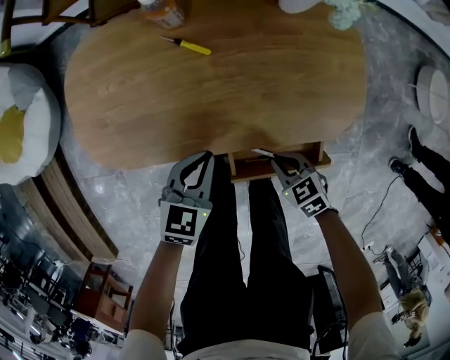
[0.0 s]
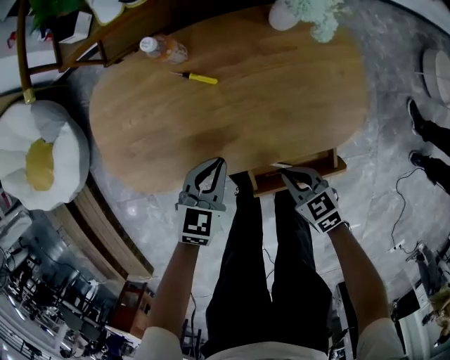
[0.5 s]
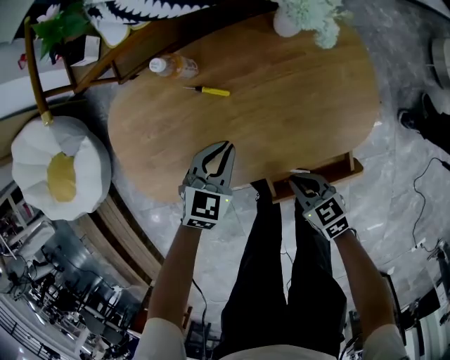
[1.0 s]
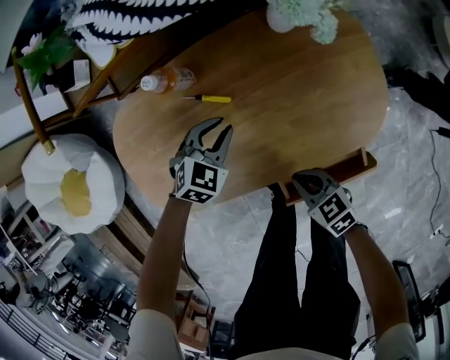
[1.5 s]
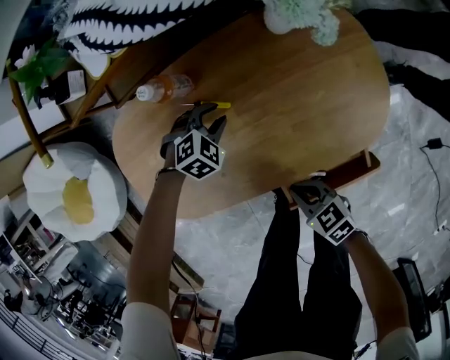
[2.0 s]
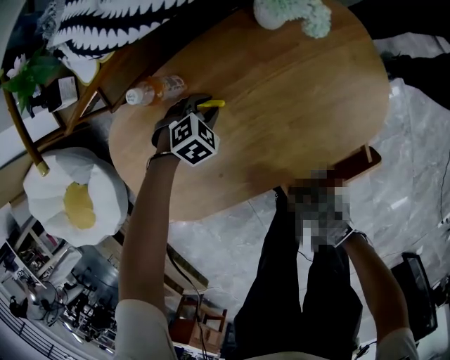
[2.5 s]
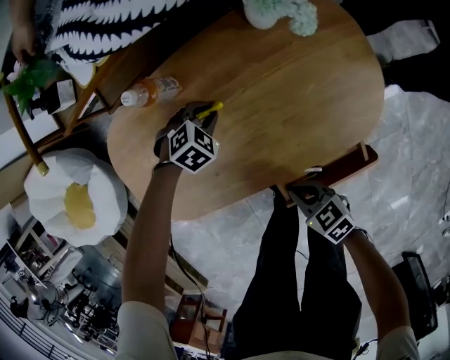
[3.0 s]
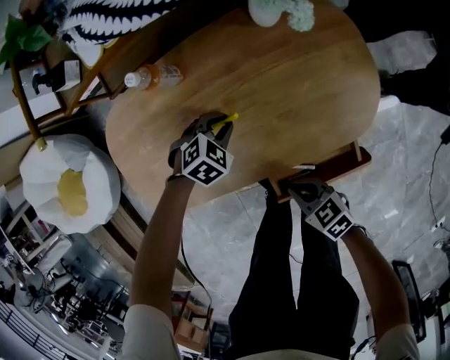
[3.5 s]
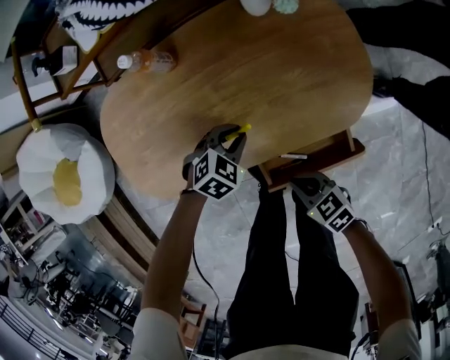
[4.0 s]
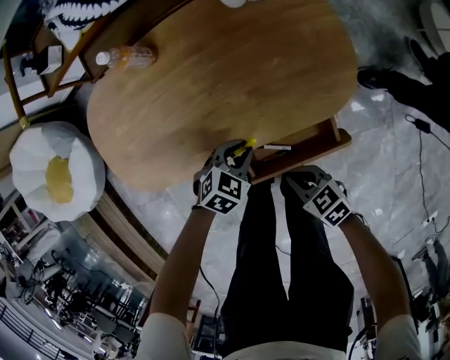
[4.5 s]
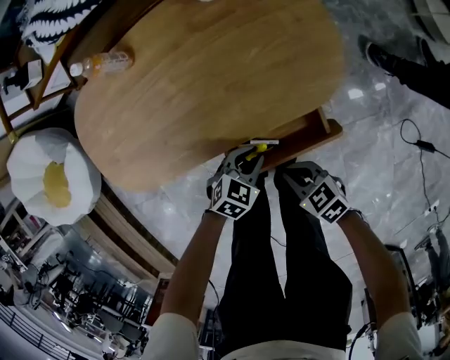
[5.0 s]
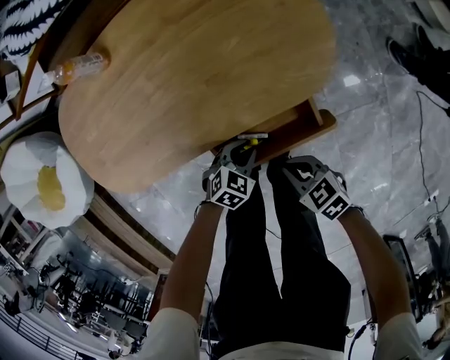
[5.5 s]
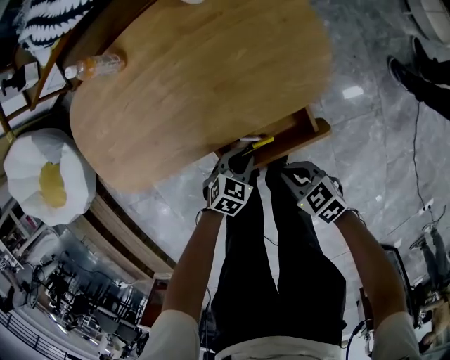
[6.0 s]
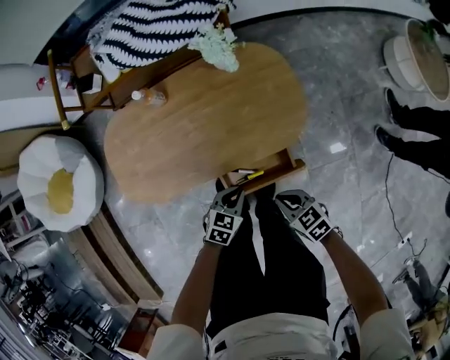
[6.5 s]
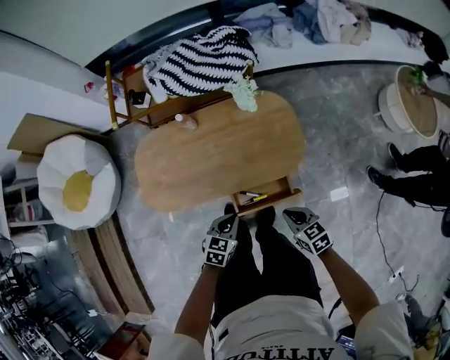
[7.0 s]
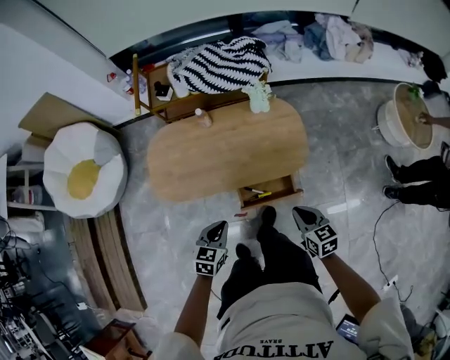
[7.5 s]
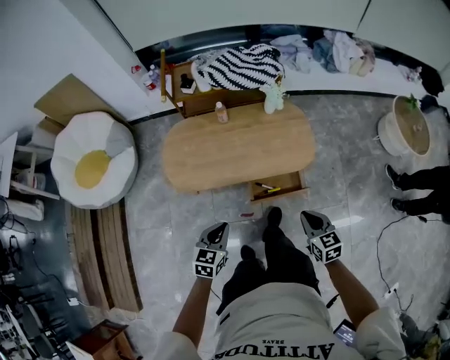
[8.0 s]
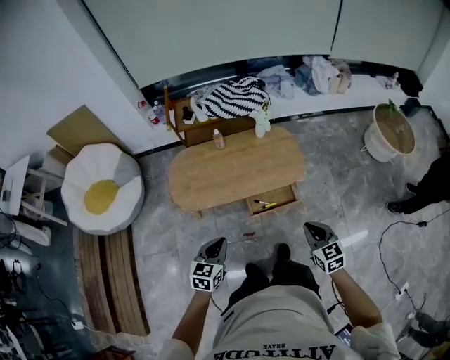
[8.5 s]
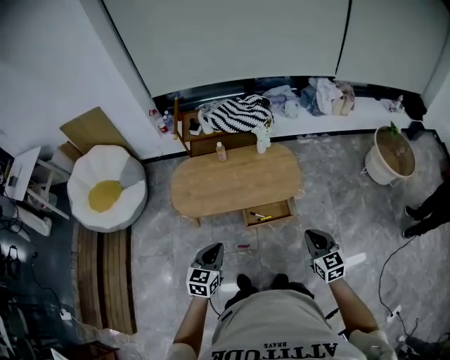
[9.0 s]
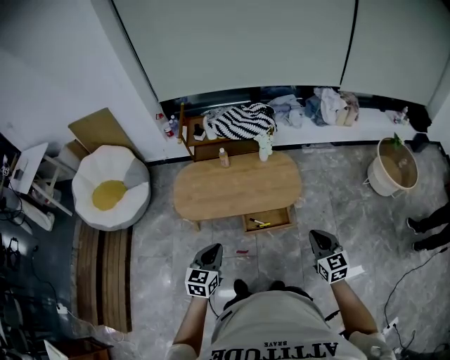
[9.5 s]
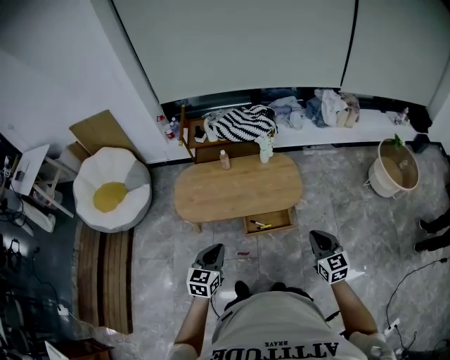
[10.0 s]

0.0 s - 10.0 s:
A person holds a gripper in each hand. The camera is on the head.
0.0 s - 2.0 s: The left gripper travels forward and downward by roughly 25 cm, rolls clockwise, seen from behind, by approximately 50 degrees, and opens; the right gripper travels to the left by roughly 5 cm, and swivels some 20 degrees.
2.0 s - 4.0 s: The left gripper ends up approximately 15 cm from where it was. Meanwhile the right gripper ends up about 10 cm from where it was.
4.0 s - 6.0 s: The right gripper changes place by some 10 cm. Meanwhile the left gripper moves roughly 20 cm.
6.0 s - 8.0 s: The grippers both shift upward by some 40 cm. The left gripper changes its angle by roughly 40 degrees, while the right gripper changes its angle by roughly 30 degrees.
8.0 s - 10.0 s: The left gripper is displaced upward and backward by about 20 cm. Meanwhile the right gripper heads upward, to the right and backward, covering approximately 20 cm.

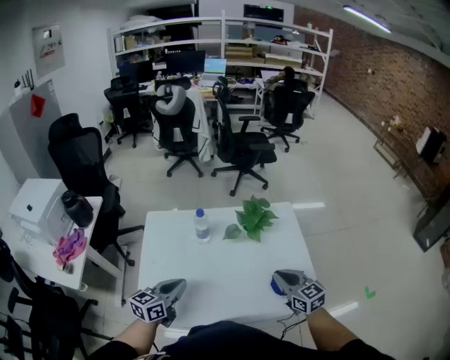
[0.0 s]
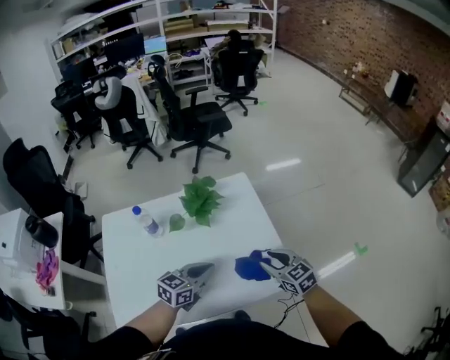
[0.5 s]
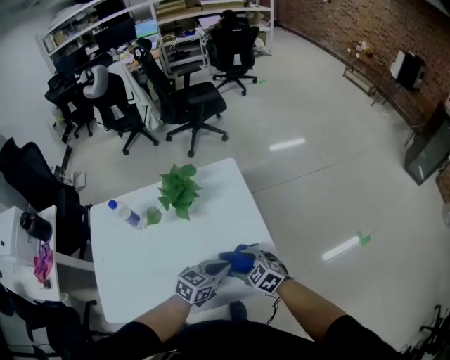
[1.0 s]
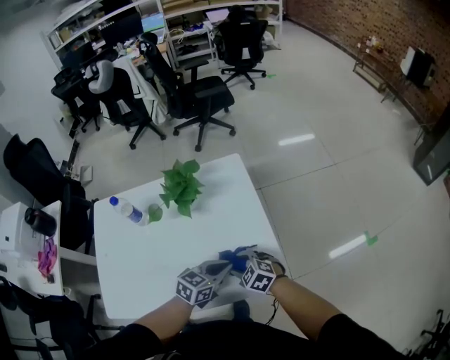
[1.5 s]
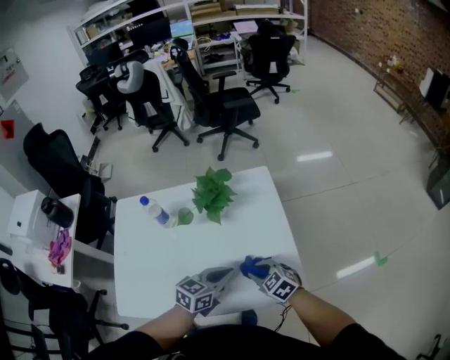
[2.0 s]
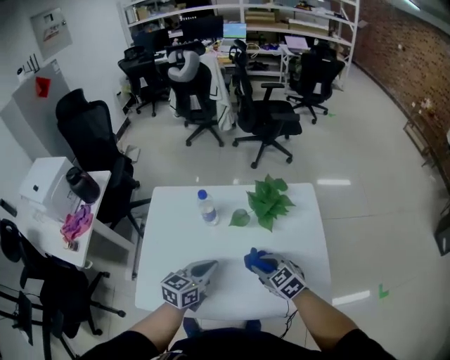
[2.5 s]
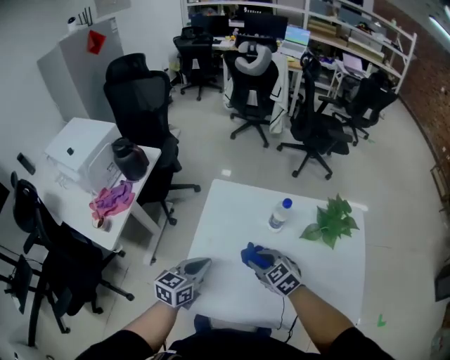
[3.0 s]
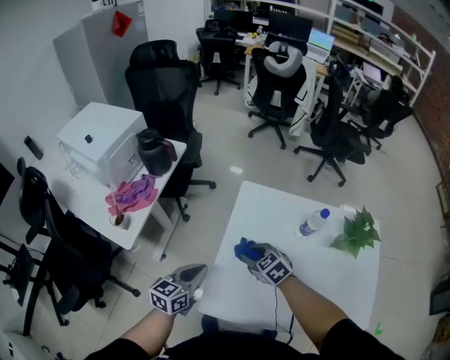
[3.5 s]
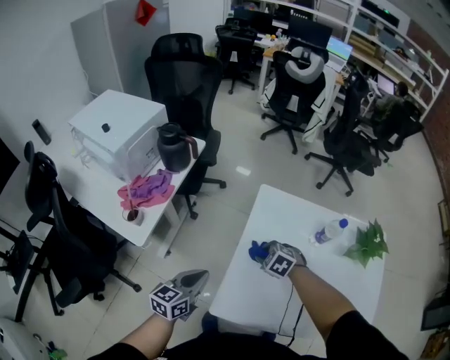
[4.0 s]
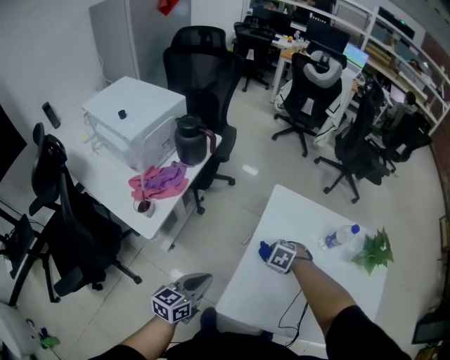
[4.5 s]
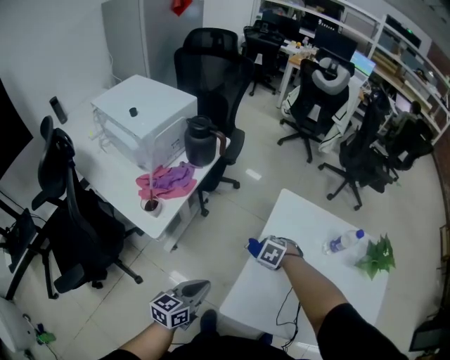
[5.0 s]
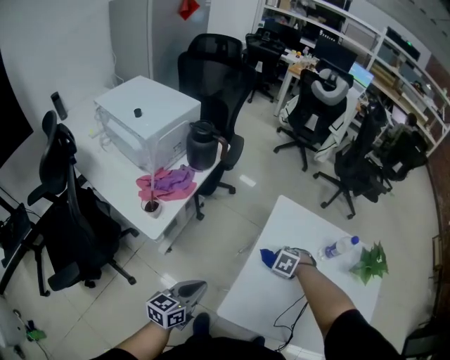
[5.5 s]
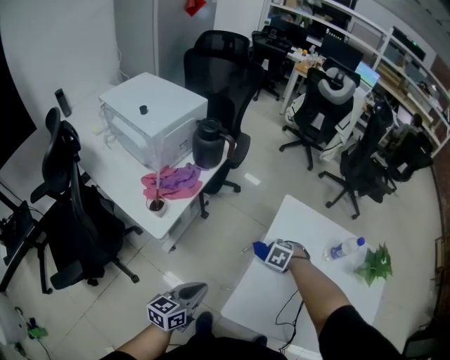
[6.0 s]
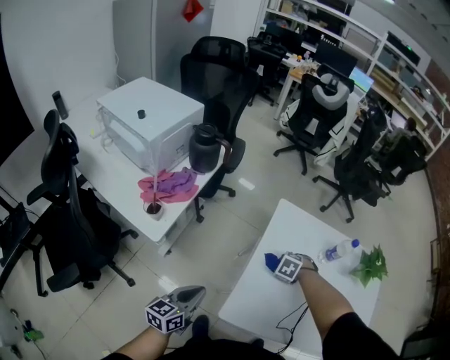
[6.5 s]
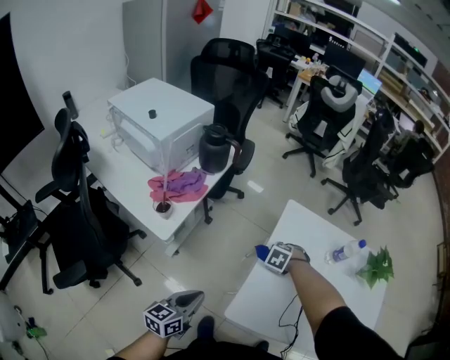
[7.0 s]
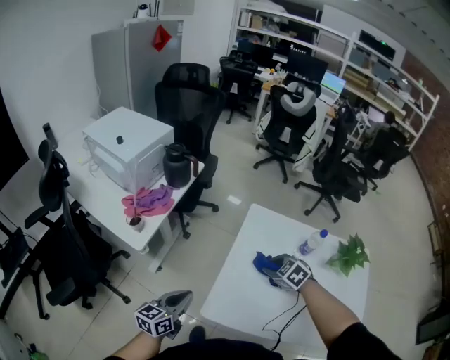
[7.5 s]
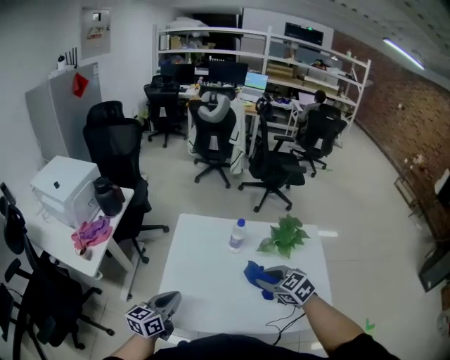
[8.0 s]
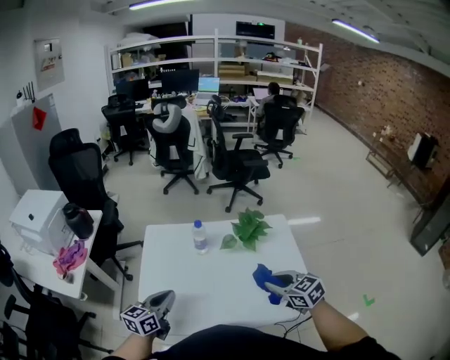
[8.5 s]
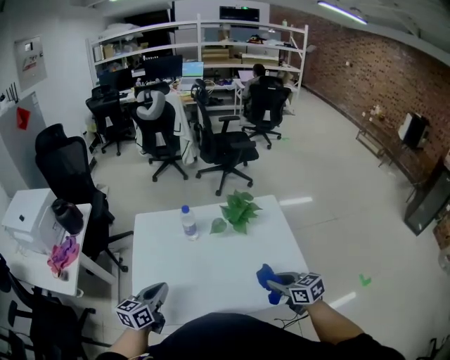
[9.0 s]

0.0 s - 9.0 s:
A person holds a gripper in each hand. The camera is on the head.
0.0 s - 2.0 s: The right gripper moves downward and to the right, some 15 cm, rotates approximately 30 degrees, and opens, then closes again. Meanwhile the left gripper goes approximately 35 cm to the right.
2.0 s - 4.5 s: Both grippers are carried about 60 cm. The right gripper tilts its fingers about 40 degrees downward; the left gripper changes its angle by some 40 degrees.
4.5 s - 7.0 s: The right gripper moves about 5 cm; the left gripper moves some 10 cm.
7.0 s - 9.0 s: The right gripper ends up about 60 cm from where it was, and points its fingers about 50 degrees further upward. Meanwhile the left gripper shifts by roughly 40 cm, and changes its angle by approximately 30 degrees.

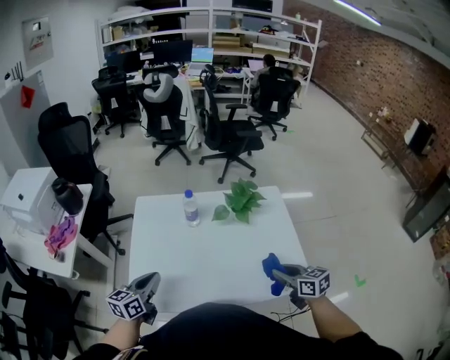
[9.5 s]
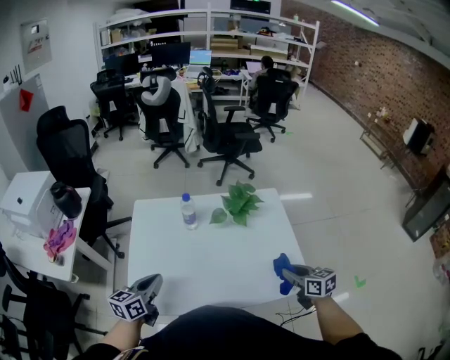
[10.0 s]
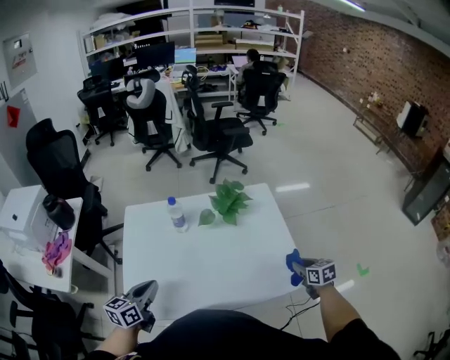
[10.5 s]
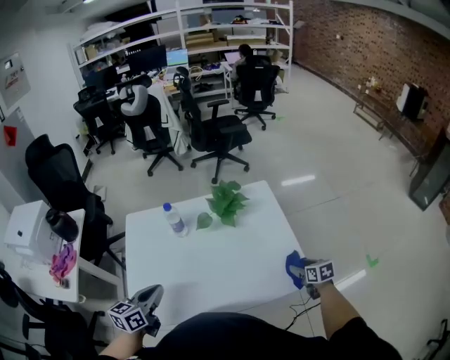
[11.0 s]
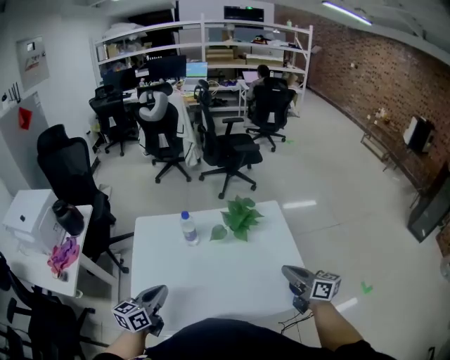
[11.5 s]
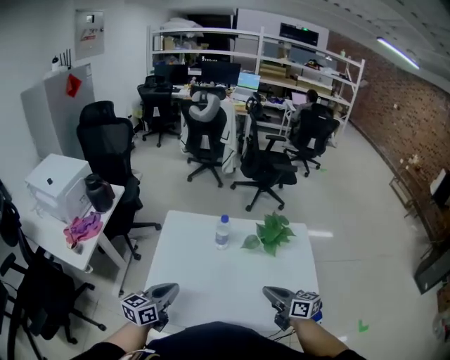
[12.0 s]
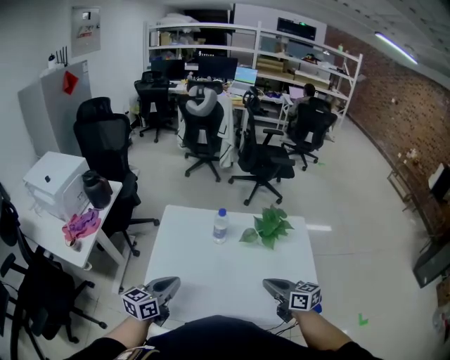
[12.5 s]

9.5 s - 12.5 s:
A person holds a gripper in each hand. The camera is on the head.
9.5 s - 11.0 s: The left gripper travels to the right by about 5 cm; the right gripper is displaced to the right and downward by roughly 20 cm, swivels approximately 30 degrees, and opens its fingers.
11.0 s - 12.5 s: The left gripper travels to the left by some 5 cm; the right gripper shifts approximately 35 cm to the left and upward, turns by about 40 degrees, and closes up.

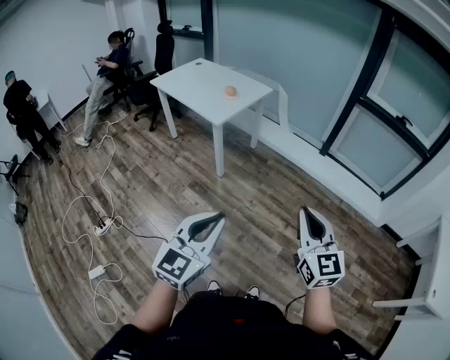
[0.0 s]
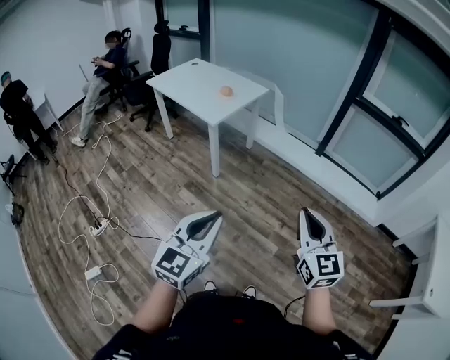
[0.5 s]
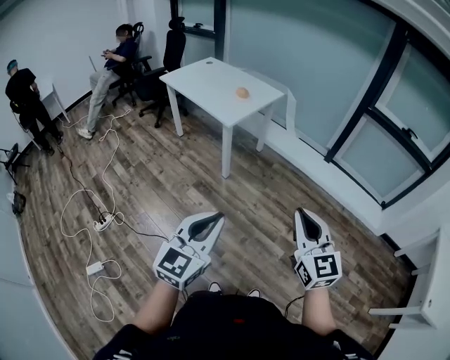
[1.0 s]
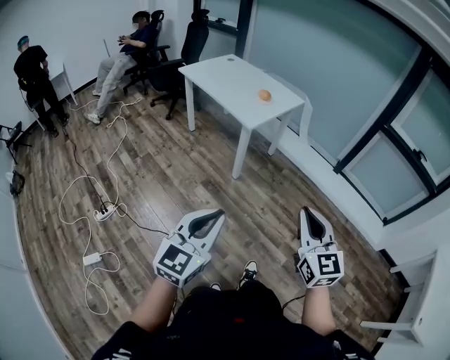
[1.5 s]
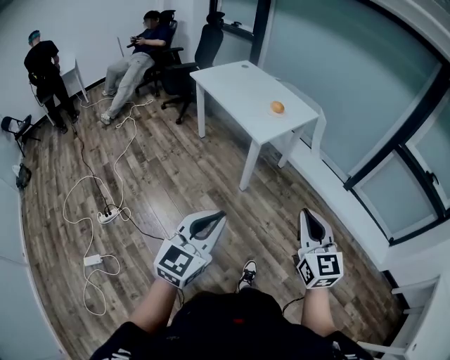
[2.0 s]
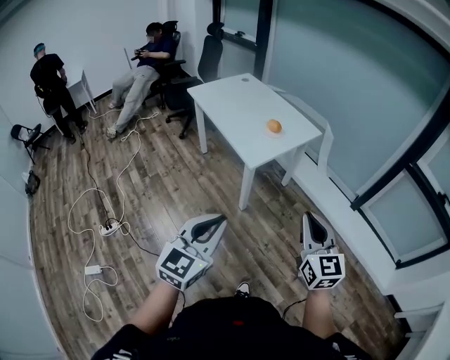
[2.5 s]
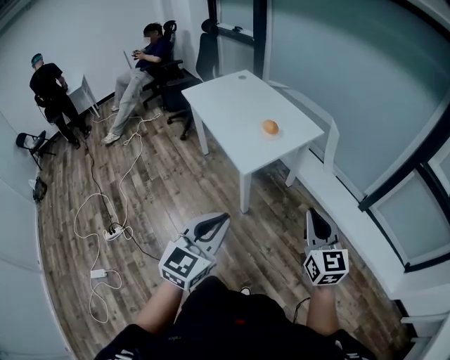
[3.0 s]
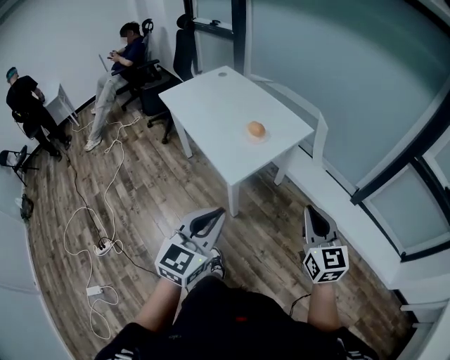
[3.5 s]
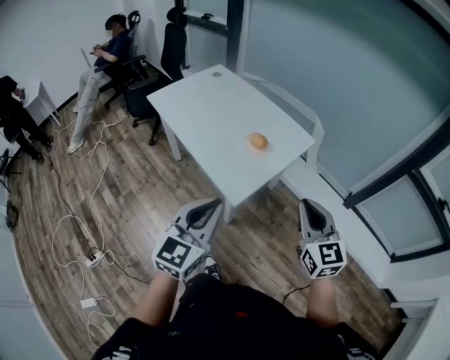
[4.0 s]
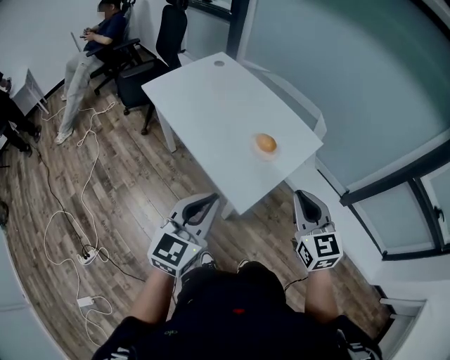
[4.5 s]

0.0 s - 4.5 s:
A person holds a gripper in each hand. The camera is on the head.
0.0 s - 2.0 s: The grippers both shift to the left and forward by approximately 25 cm.
2.0 s - 4.5 s: The pair of grippers is taken forward, approximately 60 cm.
